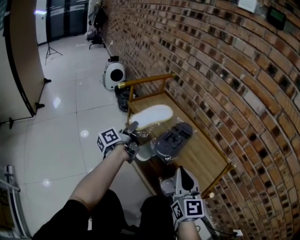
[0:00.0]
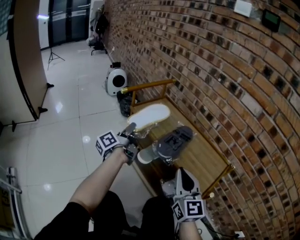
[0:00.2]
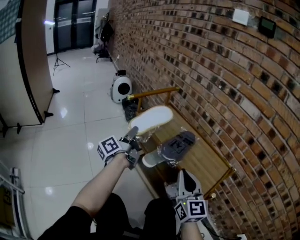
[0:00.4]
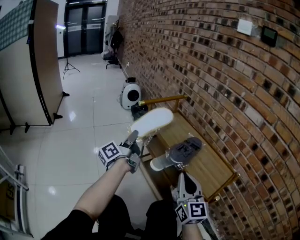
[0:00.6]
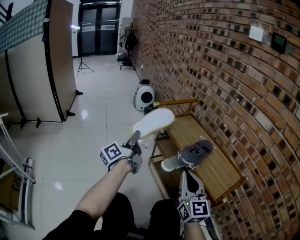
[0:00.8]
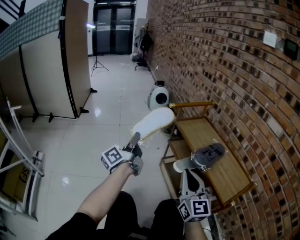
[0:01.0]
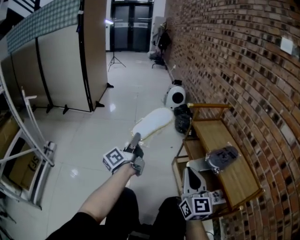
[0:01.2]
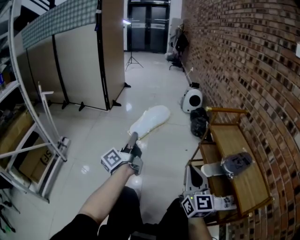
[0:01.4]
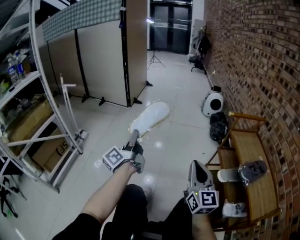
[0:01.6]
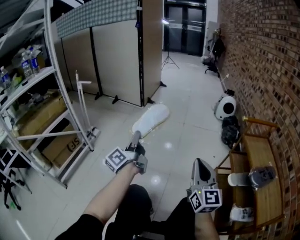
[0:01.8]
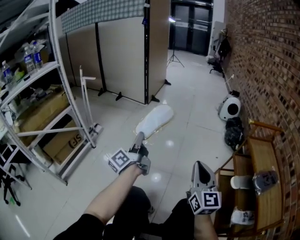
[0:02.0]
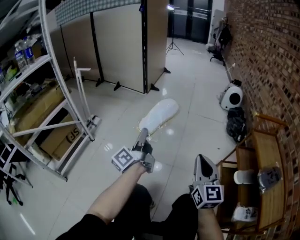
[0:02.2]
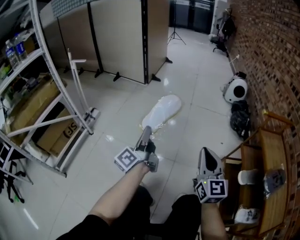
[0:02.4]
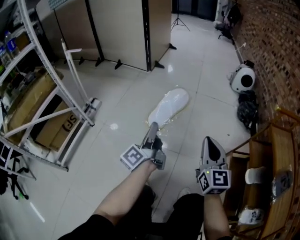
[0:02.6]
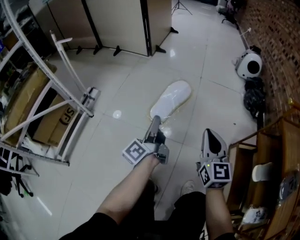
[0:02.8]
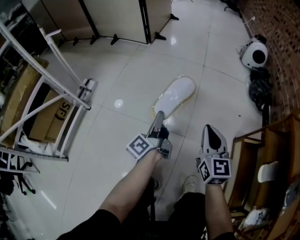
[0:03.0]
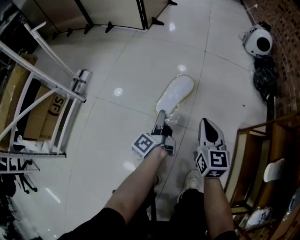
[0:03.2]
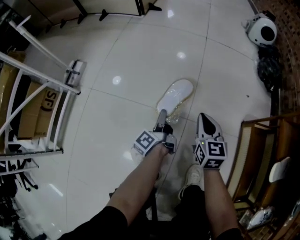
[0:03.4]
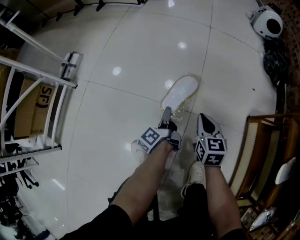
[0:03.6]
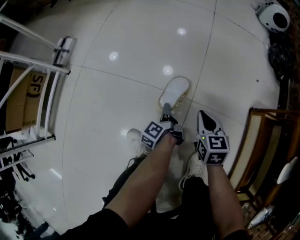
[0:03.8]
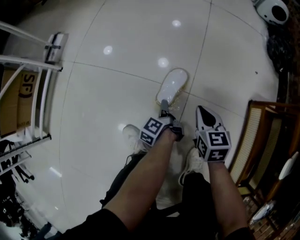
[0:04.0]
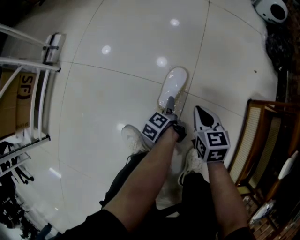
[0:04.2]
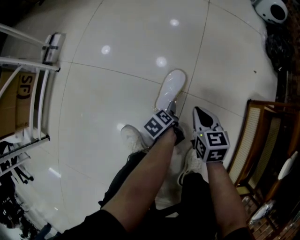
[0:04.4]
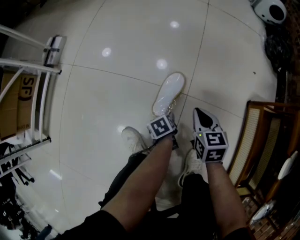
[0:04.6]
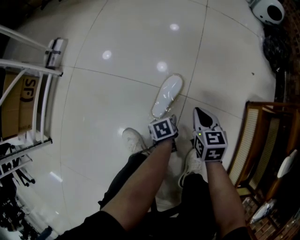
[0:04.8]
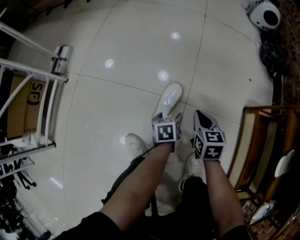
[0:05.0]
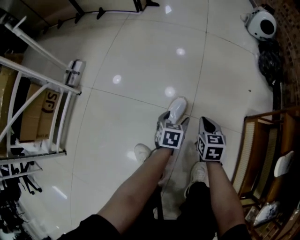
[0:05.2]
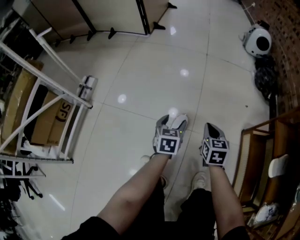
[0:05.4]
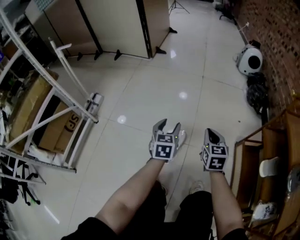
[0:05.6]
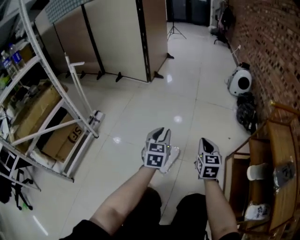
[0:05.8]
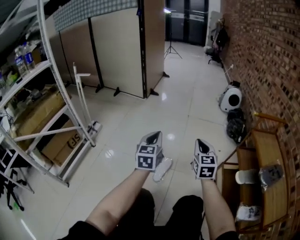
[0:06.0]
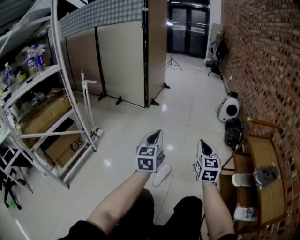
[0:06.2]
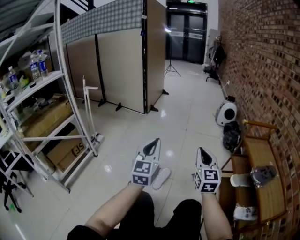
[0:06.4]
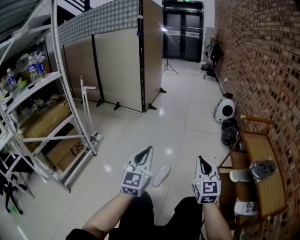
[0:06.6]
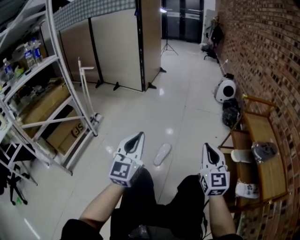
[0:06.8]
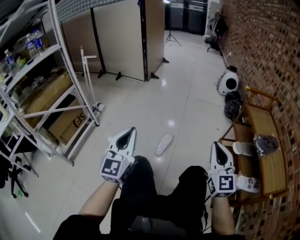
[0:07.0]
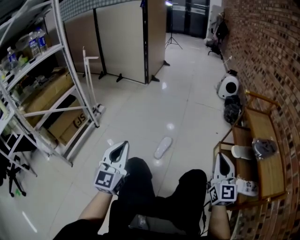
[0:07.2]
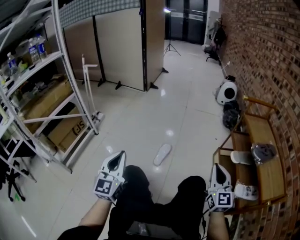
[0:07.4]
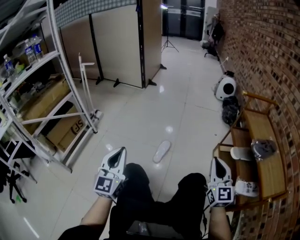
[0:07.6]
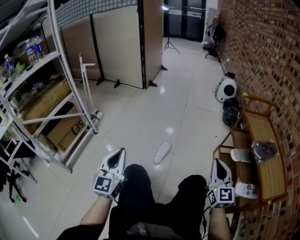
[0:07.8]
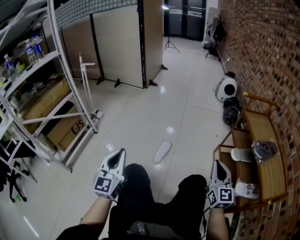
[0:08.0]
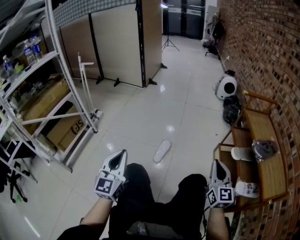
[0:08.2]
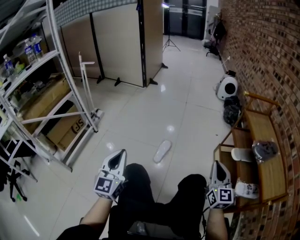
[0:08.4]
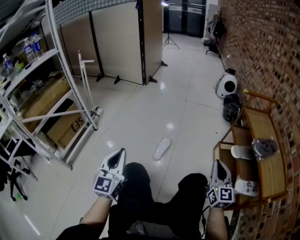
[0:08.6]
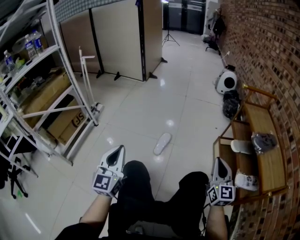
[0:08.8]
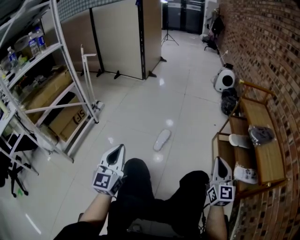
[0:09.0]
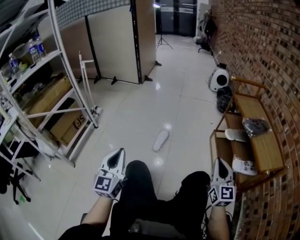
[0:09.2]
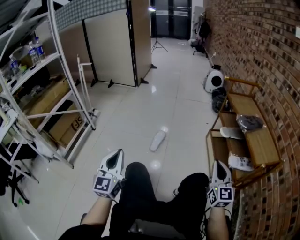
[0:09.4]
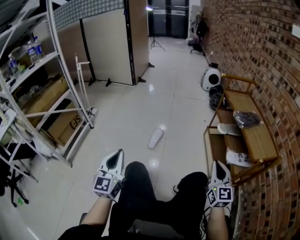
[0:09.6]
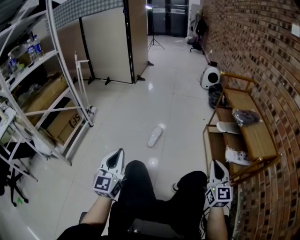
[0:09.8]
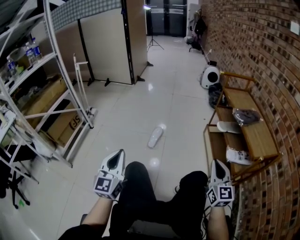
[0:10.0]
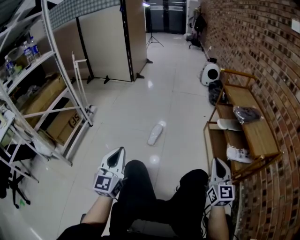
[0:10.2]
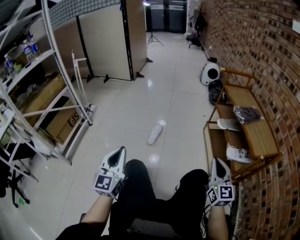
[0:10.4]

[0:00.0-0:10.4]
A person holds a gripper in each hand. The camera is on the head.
0:00.0 to 0:01.4: The right gripper shifts by roughly 25 cm, and swivels roughly 30 degrees, while the left gripper moves roughly 40 cm, and changes its angle by about 50 degrees.
0:01.4 to 0:03.0: The left gripper is displaced downward, to the left and forward by some 30 cm, and swivels roughly 20 degrees, while the right gripper travels forward, downward and to the left by approximately 35 cm, and turns by roughly 20 degrees.
0:03.0 to 0:04.4: Both grippers travel together downward, approximately 35 cm. The right gripper points its fingers approximately 30 degrees further downward. Meanwhile the left gripper tips its fingers downward by approximately 60 degrees, and opens its fingers.
0:04.4 to 0:06.0: Both grippers move upward, roughly 50 cm. The right gripper tilts its fingers roughly 30 degrees upward; the left gripper rolls clockwise, seen from behind, by approximately 70 degrees, and closes its fingers.
0:06.0 to 0:07.4: Both grippers move backward, about 30 cm.
0:07.4 to 0:09.0: The grippers both shift backward by roughly 5 cm.
0:09.0 to 0:10.4: The right gripper is displaced backward by roughly 10 cm. The left gripper travels backward by some 5 cm.

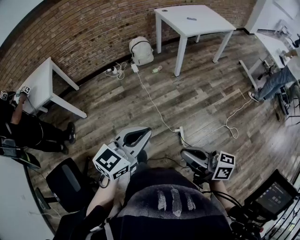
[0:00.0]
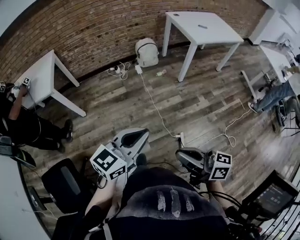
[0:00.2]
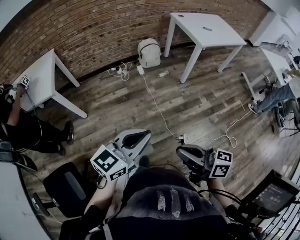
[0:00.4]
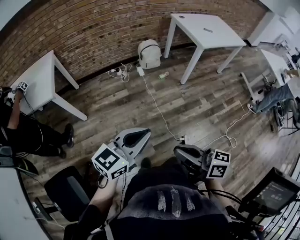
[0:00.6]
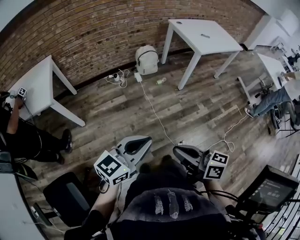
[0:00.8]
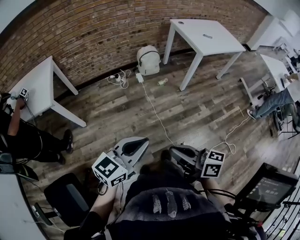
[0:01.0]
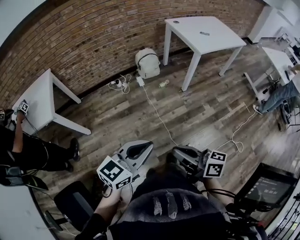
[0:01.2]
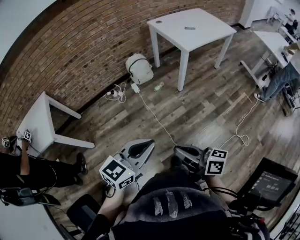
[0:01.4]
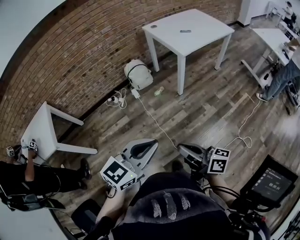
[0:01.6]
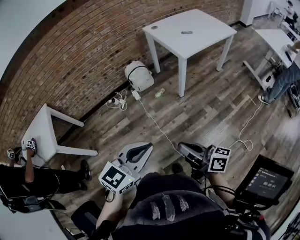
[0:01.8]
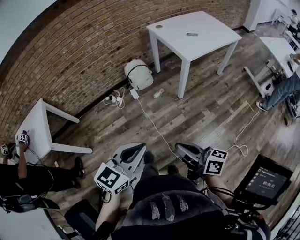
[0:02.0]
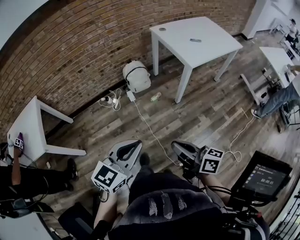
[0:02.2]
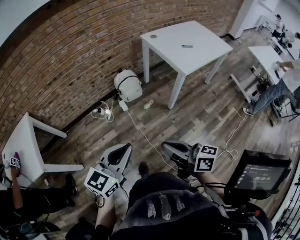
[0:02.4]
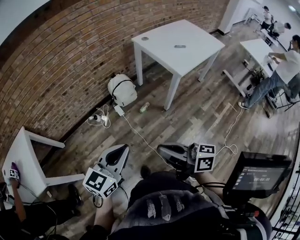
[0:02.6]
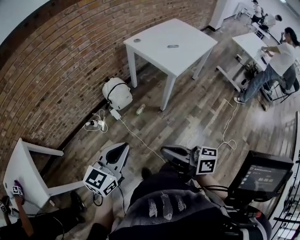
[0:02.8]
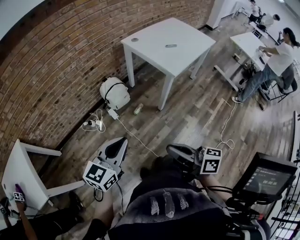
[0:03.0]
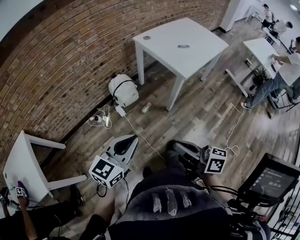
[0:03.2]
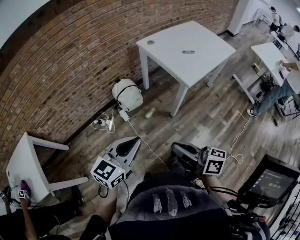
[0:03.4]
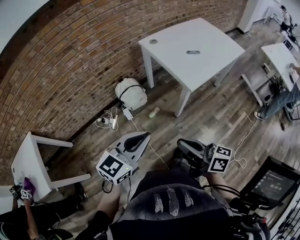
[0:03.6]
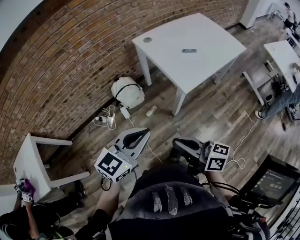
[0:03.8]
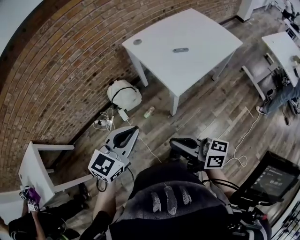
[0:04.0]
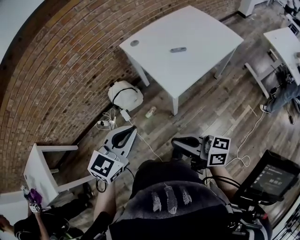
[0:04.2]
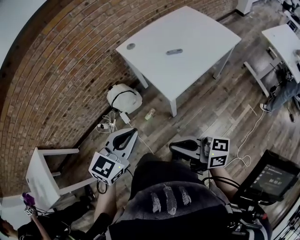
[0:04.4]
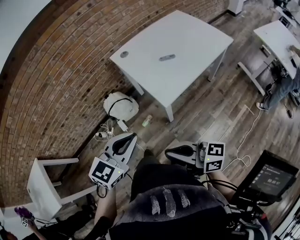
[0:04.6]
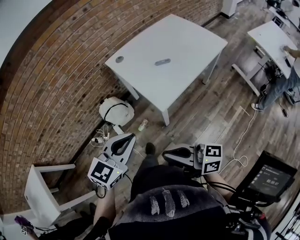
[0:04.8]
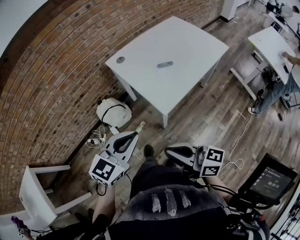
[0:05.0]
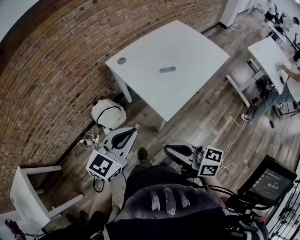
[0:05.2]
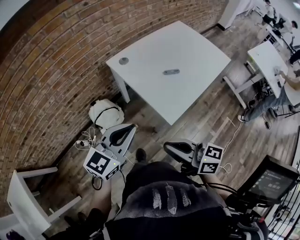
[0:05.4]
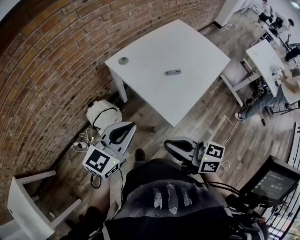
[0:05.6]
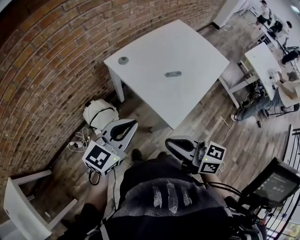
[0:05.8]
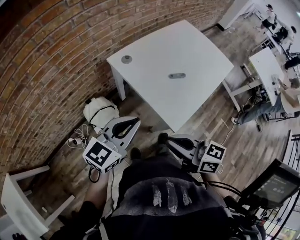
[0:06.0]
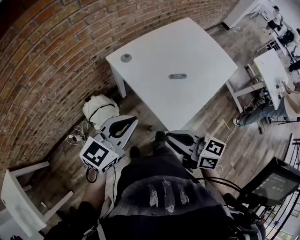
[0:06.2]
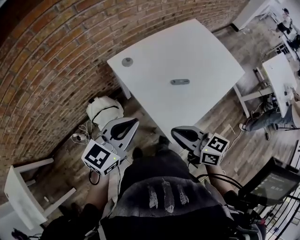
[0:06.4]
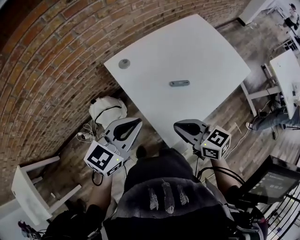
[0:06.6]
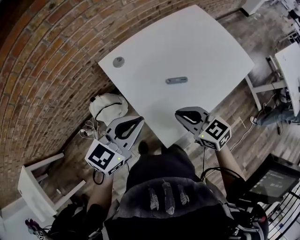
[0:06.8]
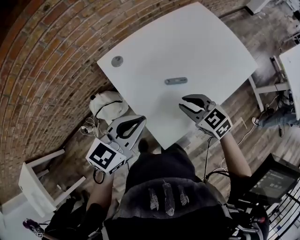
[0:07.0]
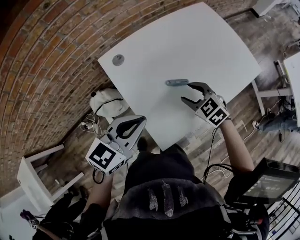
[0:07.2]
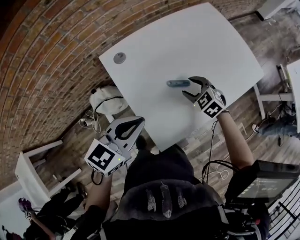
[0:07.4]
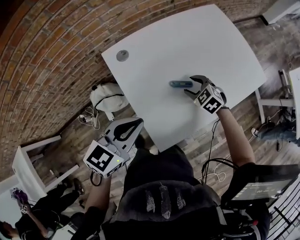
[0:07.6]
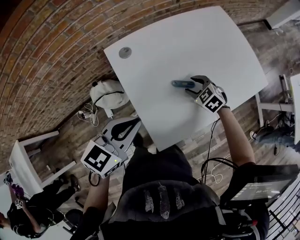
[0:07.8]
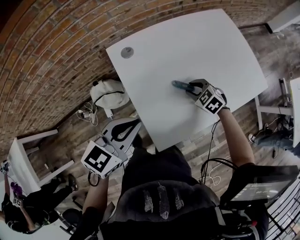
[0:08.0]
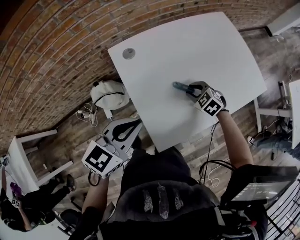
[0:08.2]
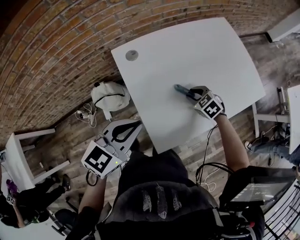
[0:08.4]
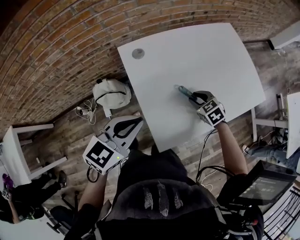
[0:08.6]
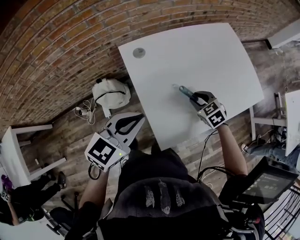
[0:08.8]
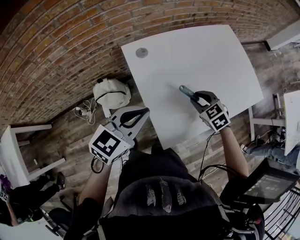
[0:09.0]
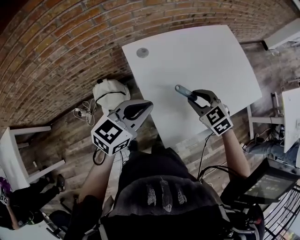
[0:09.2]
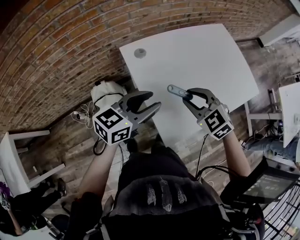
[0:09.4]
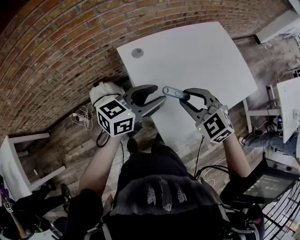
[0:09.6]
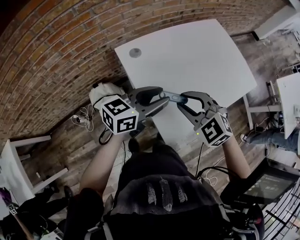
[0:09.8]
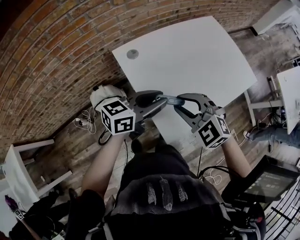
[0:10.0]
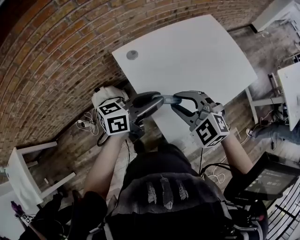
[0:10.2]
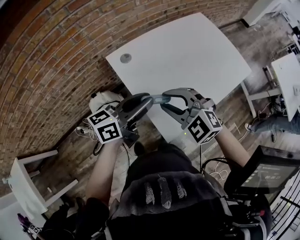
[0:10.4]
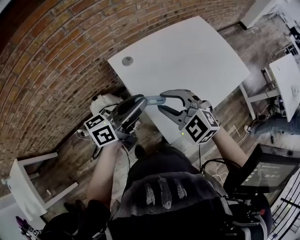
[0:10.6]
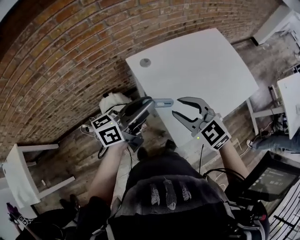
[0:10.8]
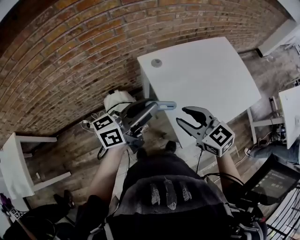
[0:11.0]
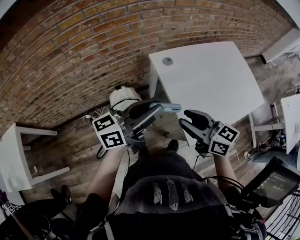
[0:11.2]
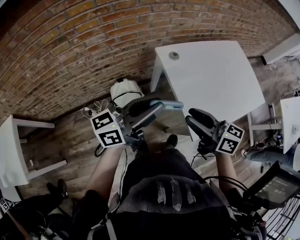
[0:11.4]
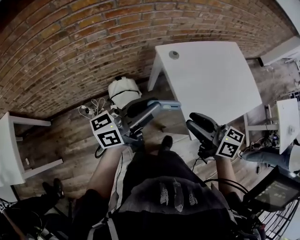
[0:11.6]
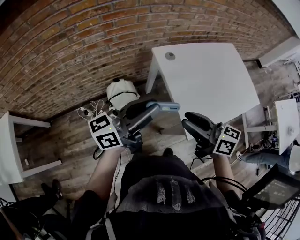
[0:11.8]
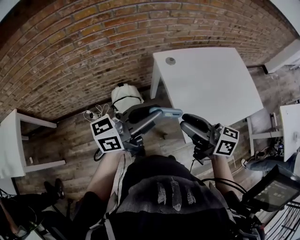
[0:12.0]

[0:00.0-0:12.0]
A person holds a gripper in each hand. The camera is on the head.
0:00.0 to 0:01.6: The grippers both shift forward by approximately 25 cm.
0:01.6 to 0:03.0: Both grippers move forward and to the left, some 25 cm.
0:03.0 to 0:04.4: Both grippers travel together to the right and forward, some 30 cm. The right gripper changes its angle by about 20 degrees.
0:04.4 to 0:06.0: Both grippers move forward, some 20 cm. The right gripper rotates roughly 30 degrees, while the left gripper changes its angle by some 20 degrees.
0:06.0 to 0:07.6: The right gripper moves forward, downward and to the right, some 40 cm, angles its fingers downward, by some 40 degrees, and opens; the left gripper heads to the right and forward, covering about 15 cm, and rotates about 20 degrees.
0:07.6 to 0:09.0: The right gripper travels upward by some 5 cm, and closes its fingers. Meanwhile the left gripper changes place by about 5 cm.
0:09.0 to 0:10.4: The right gripper moves upward, to the left and backward, some 20 cm, and swivels some 30 degrees, while the left gripper rotates approximately 40 degrees, and opens and closes again.
0:10.4 to 0:12.0: The left gripper goes about 20 cm to the left, backward and upward; the right gripper travels backward, to the left and upward by approximately 15 cm, and rolls clockwise, seen from behind, by about 70 degrees.

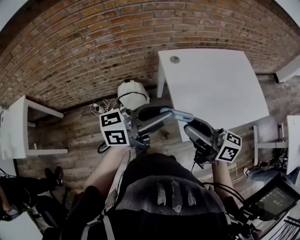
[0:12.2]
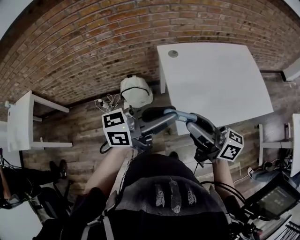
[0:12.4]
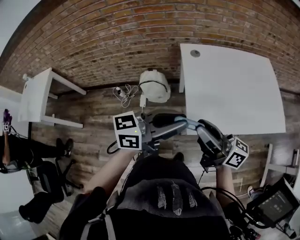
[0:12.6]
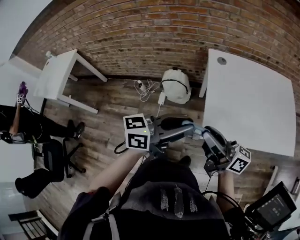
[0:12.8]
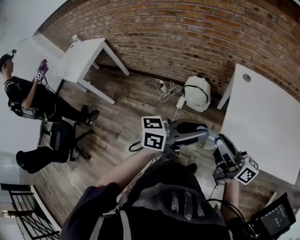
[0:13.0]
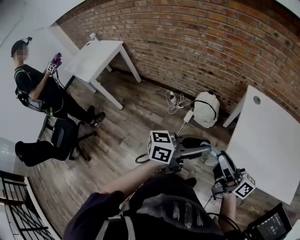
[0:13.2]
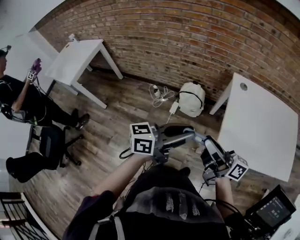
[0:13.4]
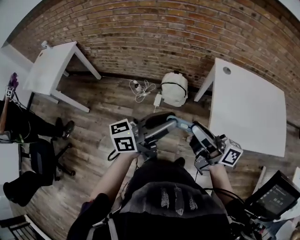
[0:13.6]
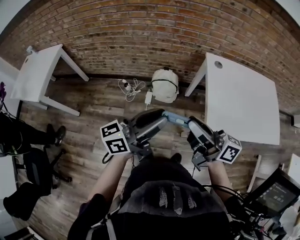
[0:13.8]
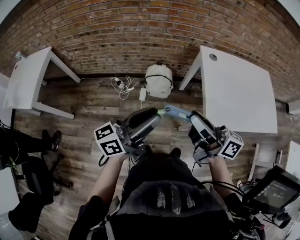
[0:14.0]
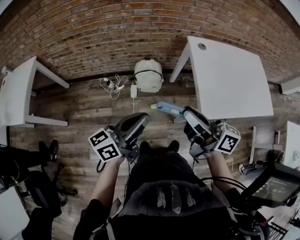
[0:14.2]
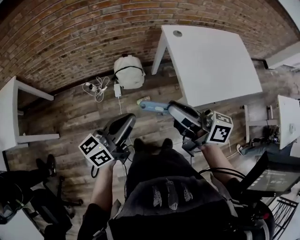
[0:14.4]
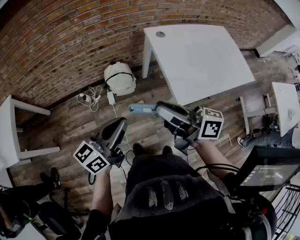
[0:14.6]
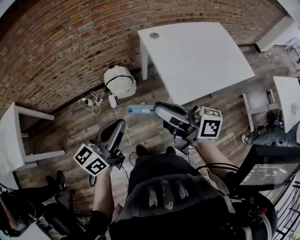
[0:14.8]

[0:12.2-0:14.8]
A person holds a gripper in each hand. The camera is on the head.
0:12.2 to 0:13.4: The right gripper shifts some 10 cm to the left and backward, and turns by roughly 30 degrees. The left gripper is displaced backward and to the left by roughly 15 cm, and swivels some 30 degrees.
0:13.4 to 0:14.8: The left gripper goes roughly 10 cm to the left, while the right gripper reaches roughly 10 cm to the left, then returns, and rotates some 20 degrees.
